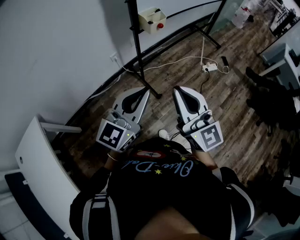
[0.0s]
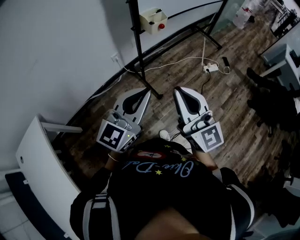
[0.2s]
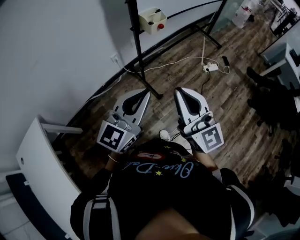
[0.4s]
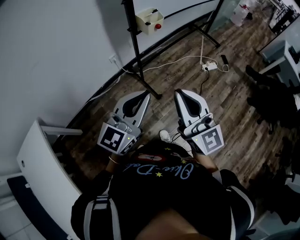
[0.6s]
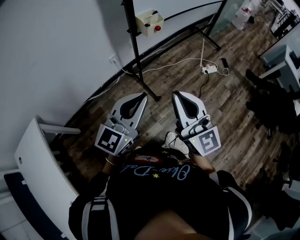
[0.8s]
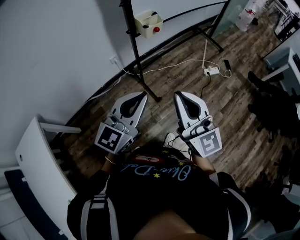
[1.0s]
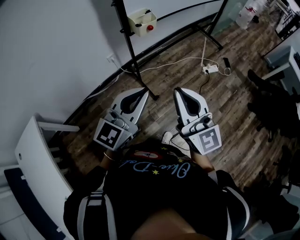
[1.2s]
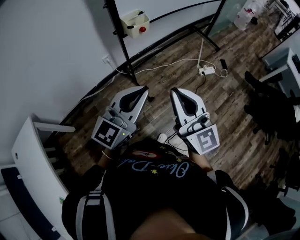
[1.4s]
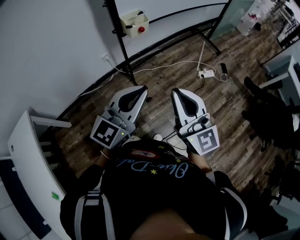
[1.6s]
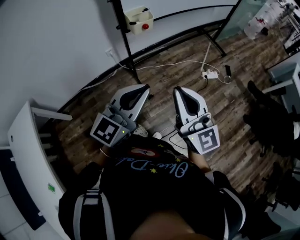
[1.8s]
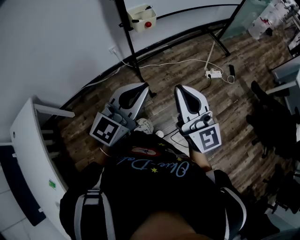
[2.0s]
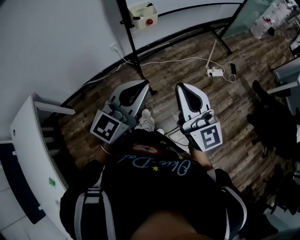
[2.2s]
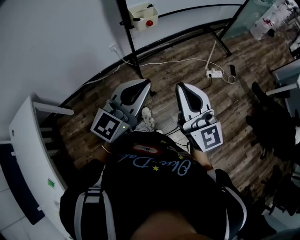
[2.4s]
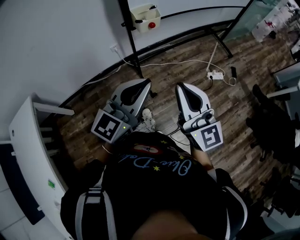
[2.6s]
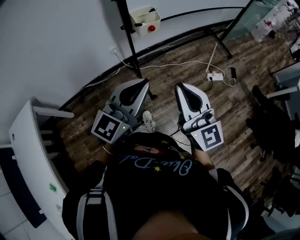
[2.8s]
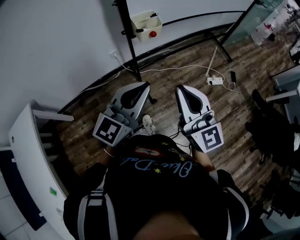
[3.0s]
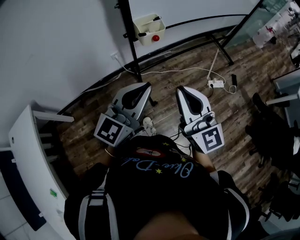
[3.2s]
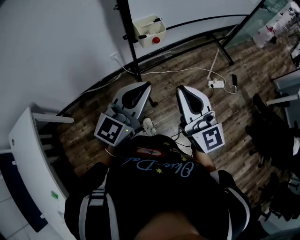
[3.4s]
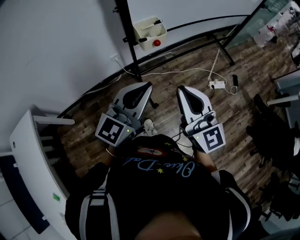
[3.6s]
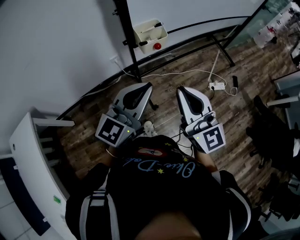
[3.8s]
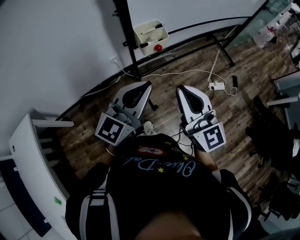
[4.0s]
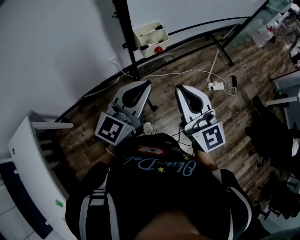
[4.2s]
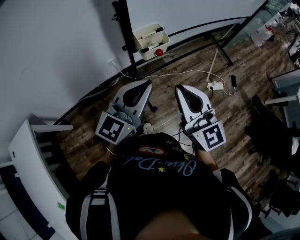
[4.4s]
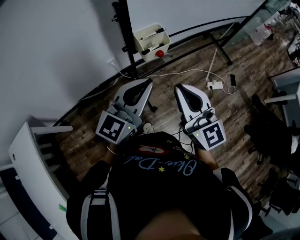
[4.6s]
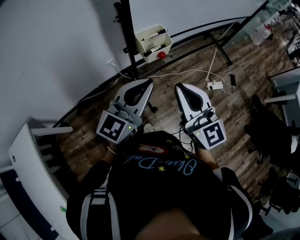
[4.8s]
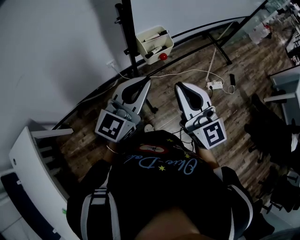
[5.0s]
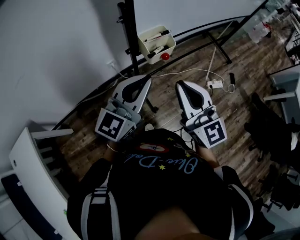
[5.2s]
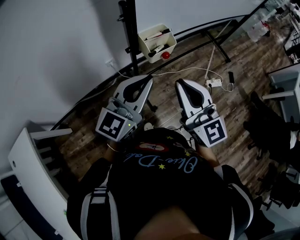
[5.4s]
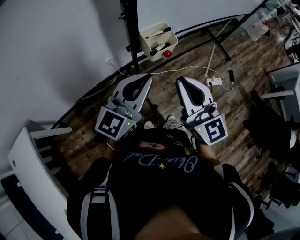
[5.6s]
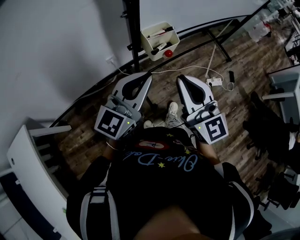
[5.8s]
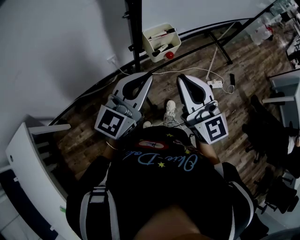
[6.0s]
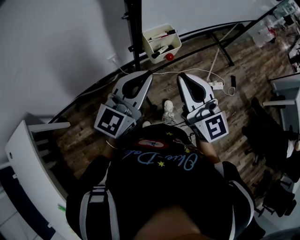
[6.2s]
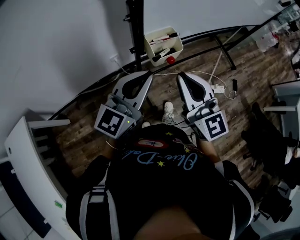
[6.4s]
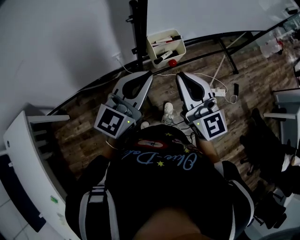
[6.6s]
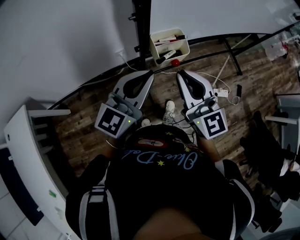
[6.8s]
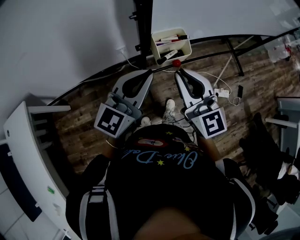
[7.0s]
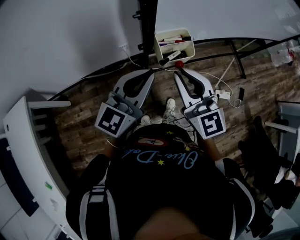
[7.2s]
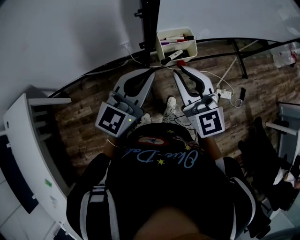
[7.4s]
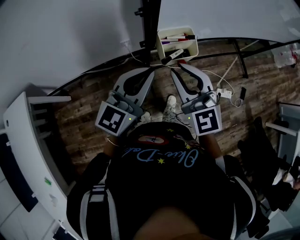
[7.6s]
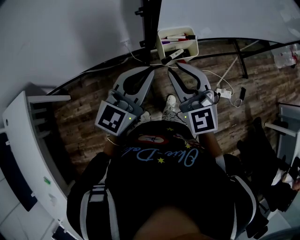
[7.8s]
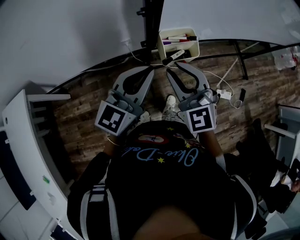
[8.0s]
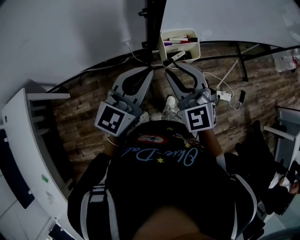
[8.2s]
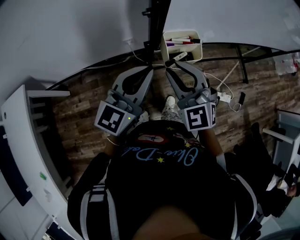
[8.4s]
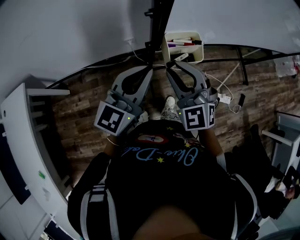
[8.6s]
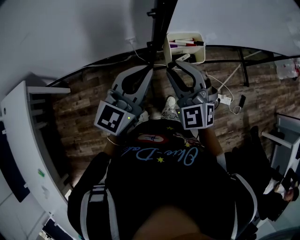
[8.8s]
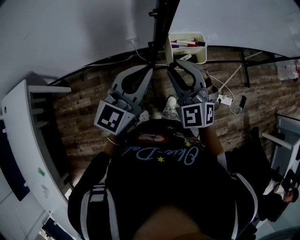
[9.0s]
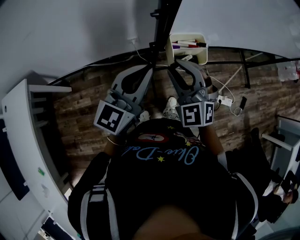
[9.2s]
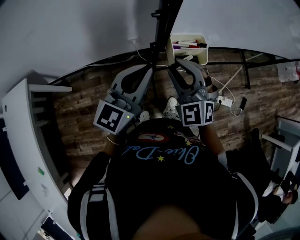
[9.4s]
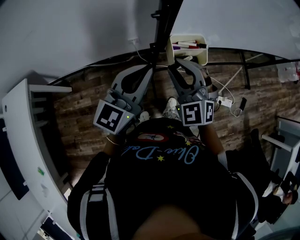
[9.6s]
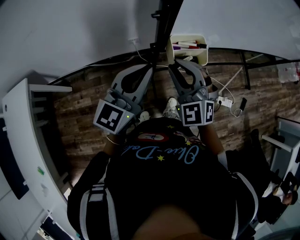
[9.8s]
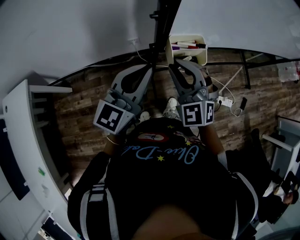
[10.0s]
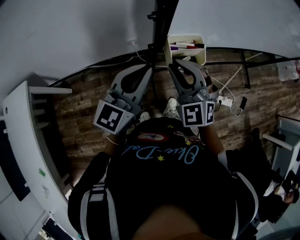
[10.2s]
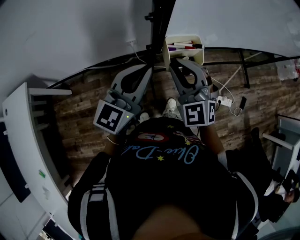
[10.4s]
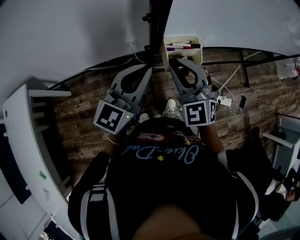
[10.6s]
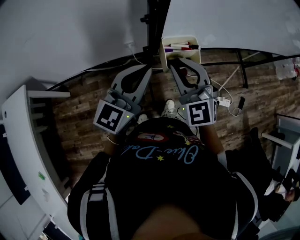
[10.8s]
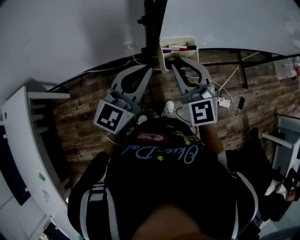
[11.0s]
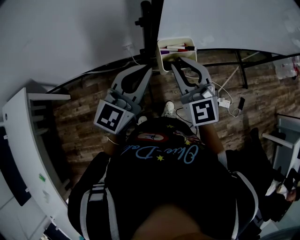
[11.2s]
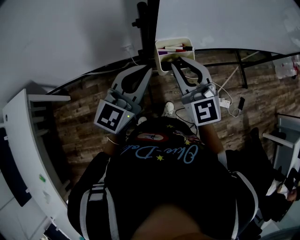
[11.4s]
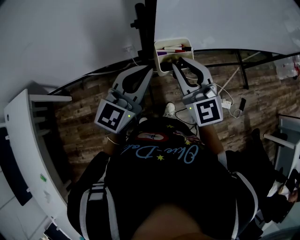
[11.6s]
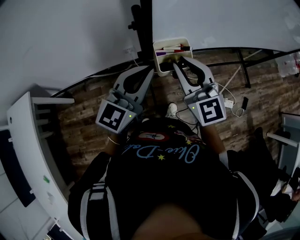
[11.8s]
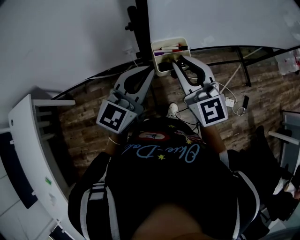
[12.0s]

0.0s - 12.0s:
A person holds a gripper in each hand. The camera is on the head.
0.0s - 1.6s: The grippers both shift to the right and forward by about 15 cm.
1.6s - 3.0s: Both grippers move forward, approximately 10 cm.
3.0s - 4.4s: The two grippers go approximately 10 cm forward.
4.4s - 6.0s: The right gripper ends up about 5 cm from where it was; the left gripper ends up about 5 cm from where it was.
6.0s - 7.6s: The left gripper travels forward by approximately 5 cm. Meanwhile the right gripper heads forward, covering roughly 10 cm, and swivels about 20 degrees.
7.6s - 9.0s: The right gripper ends up about 5 cm from where it was, and turns by roughly 30 degrees.
9.0s - 10.4s: The grippers make only small movements.
10.4s - 12.0s: The right gripper travels to the right by approximately 5 cm, and changes its angle by some 30 degrees.

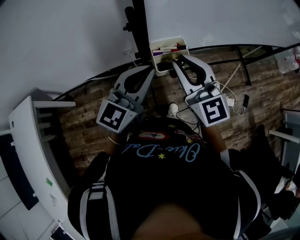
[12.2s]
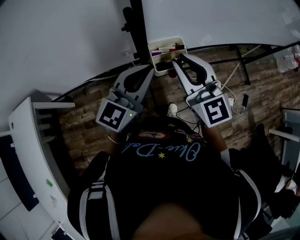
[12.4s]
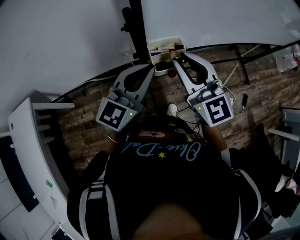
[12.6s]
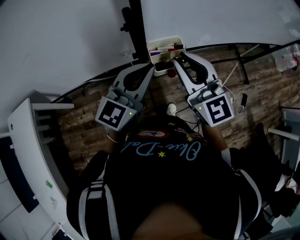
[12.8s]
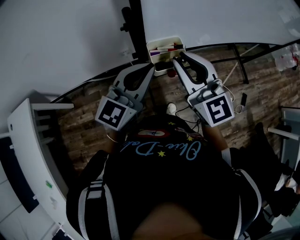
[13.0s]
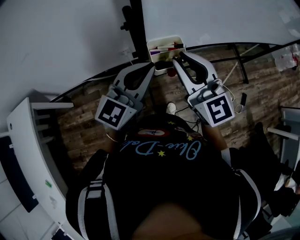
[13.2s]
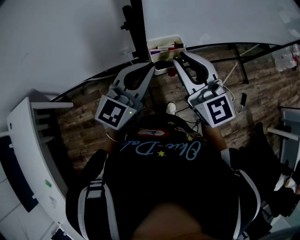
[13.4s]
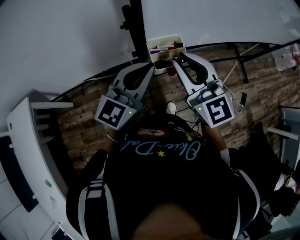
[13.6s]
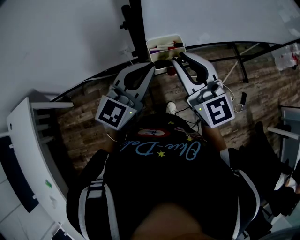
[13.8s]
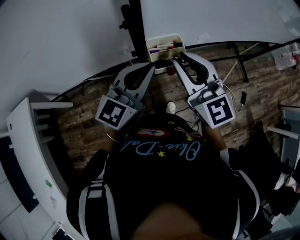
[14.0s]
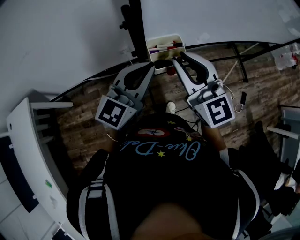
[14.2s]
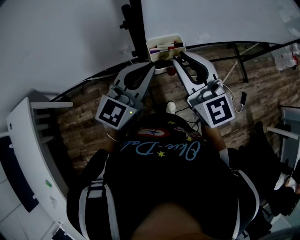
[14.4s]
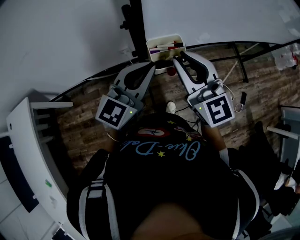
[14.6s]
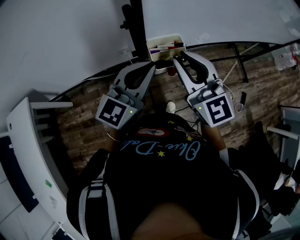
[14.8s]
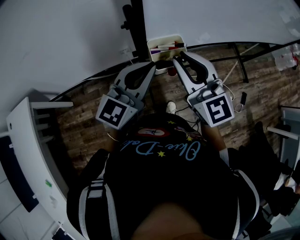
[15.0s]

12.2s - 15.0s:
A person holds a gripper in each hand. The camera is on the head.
12.2s - 13.6s: The grippers move only a little.
13.6s - 15.0s: Both grippers stay put.

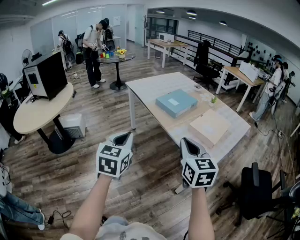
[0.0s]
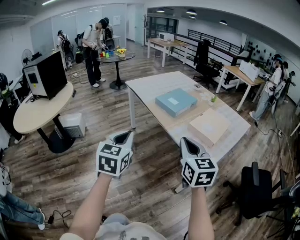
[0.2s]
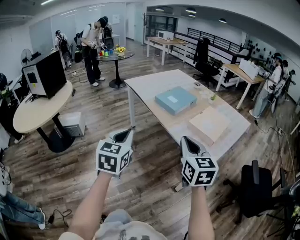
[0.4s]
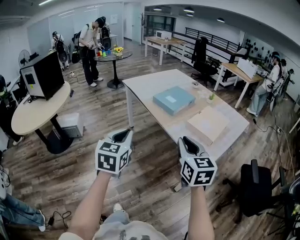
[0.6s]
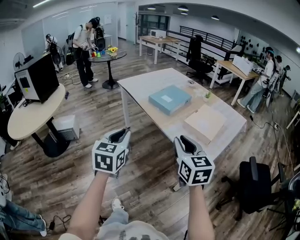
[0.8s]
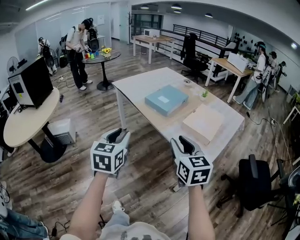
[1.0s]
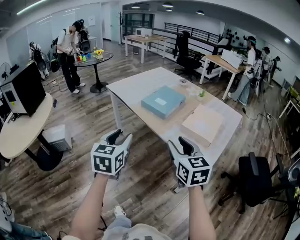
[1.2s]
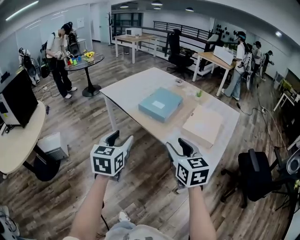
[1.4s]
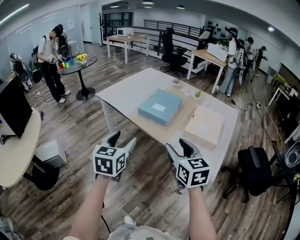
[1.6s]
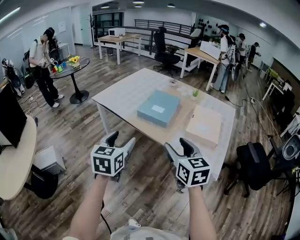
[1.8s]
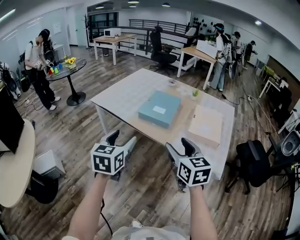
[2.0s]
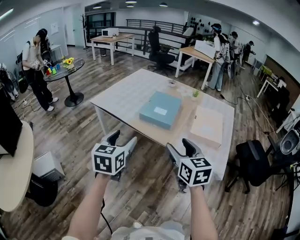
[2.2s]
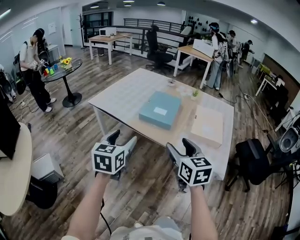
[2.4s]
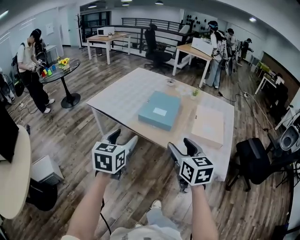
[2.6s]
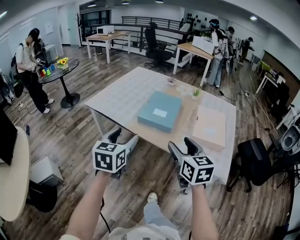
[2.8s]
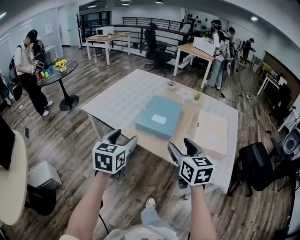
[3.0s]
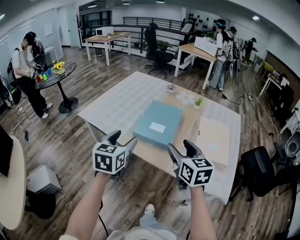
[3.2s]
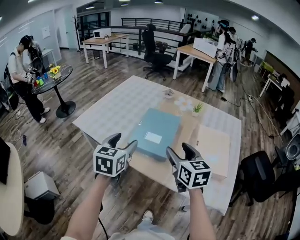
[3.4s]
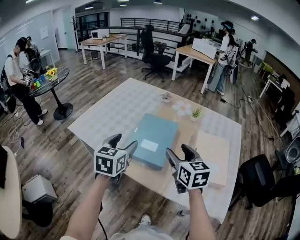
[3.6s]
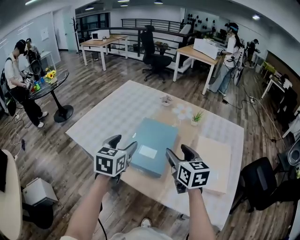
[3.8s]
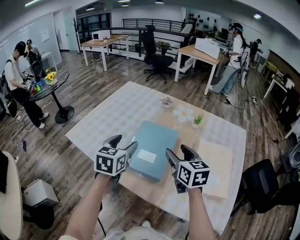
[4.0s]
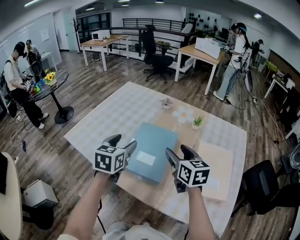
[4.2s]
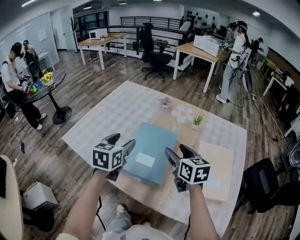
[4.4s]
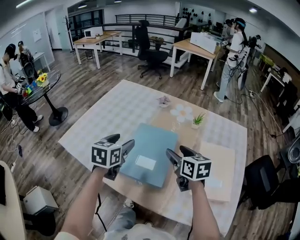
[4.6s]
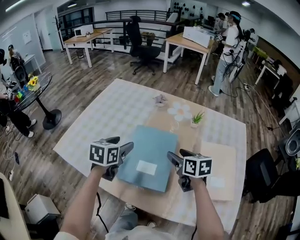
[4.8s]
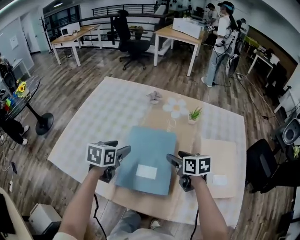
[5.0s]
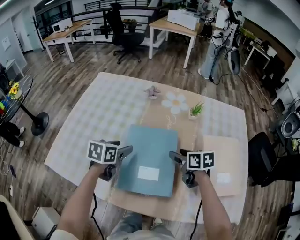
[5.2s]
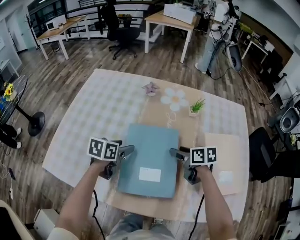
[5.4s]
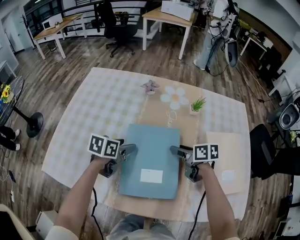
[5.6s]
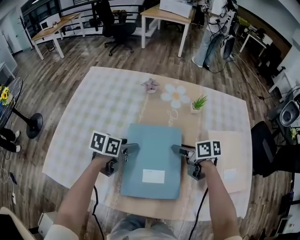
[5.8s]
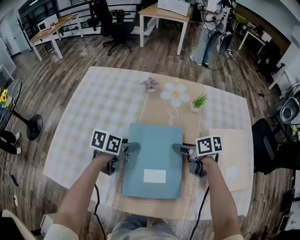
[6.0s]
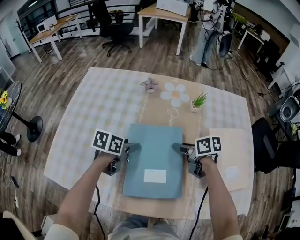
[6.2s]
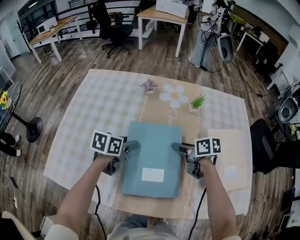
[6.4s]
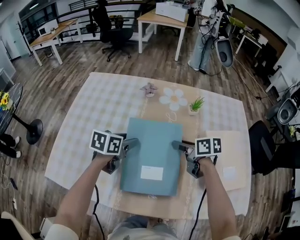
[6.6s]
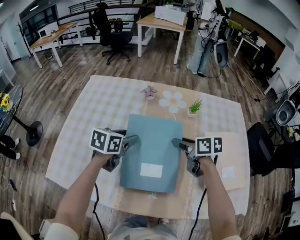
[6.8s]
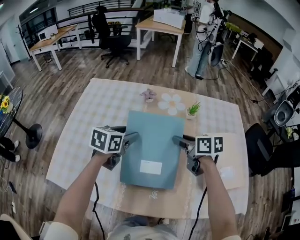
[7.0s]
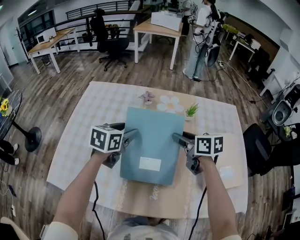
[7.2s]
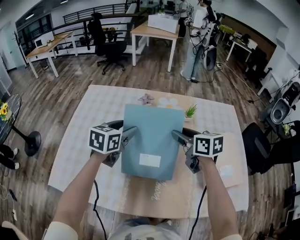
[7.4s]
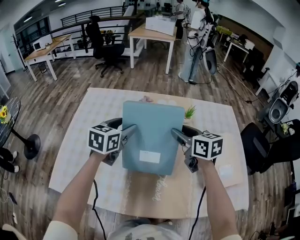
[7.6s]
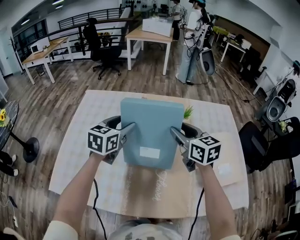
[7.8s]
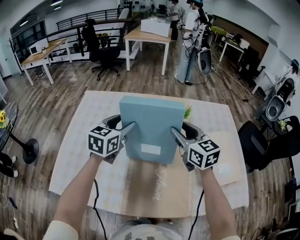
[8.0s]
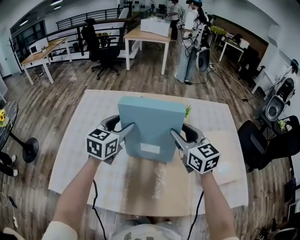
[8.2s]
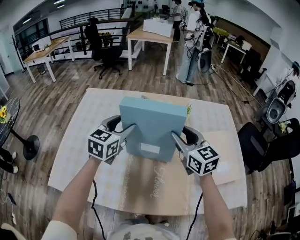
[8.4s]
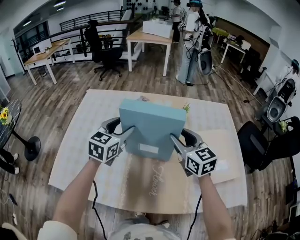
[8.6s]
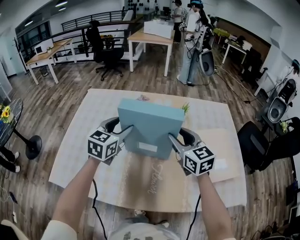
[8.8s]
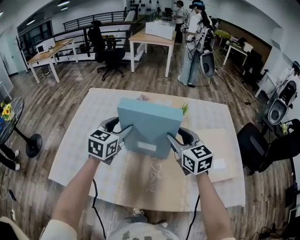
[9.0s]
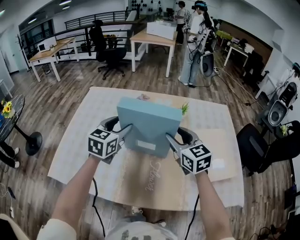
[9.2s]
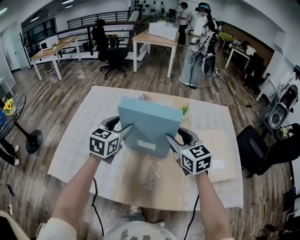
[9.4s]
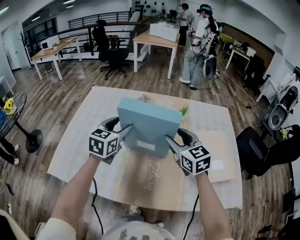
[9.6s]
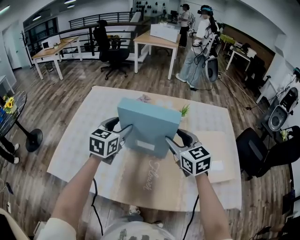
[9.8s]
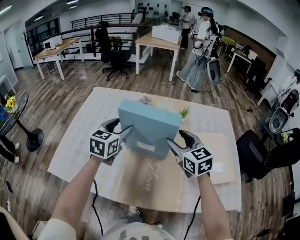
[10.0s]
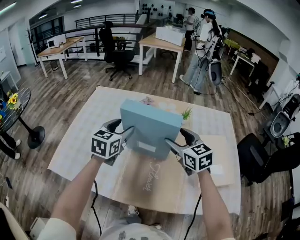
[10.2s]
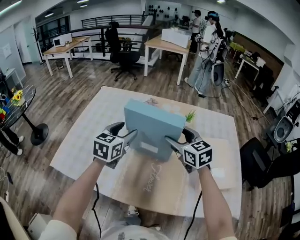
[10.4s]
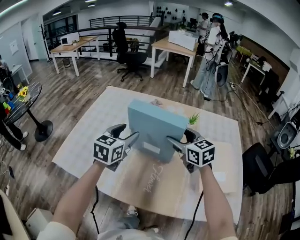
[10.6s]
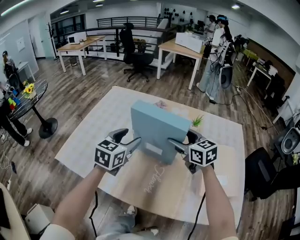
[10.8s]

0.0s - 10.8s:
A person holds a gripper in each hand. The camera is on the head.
0.0s - 1.6s: The right gripper shifts roughly 15 cm forward and to the left, and opens up; the left gripper heads forward, covering about 20 cm, and opens its fingers.
1.6s - 3.0s: The grippers both shift forward by roughly 15 cm.
3.0s - 4.6s: Both grippers travel together forward, roughly 30 cm.
4.6s - 6.2s: The two grippers go about 20 cm downward and forward. The right gripper rotates some 30 degrees. Meanwhile the left gripper swivels some 40 degrees.
6.2s - 7.8s: The two grippers go about 20 cm upward. The right gripper turns by about 50 degrees. Meanwhile the left gripper swivels some 40 degrees.
7.8s - 9.2s: The grippers both shift backward by about 5 cm.
9.2s - 10.8s: The left gripper moves backward, some 5 cm. The right gripper opens up.
